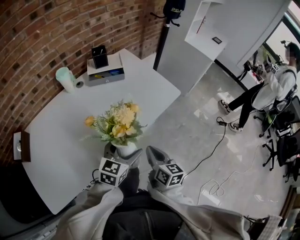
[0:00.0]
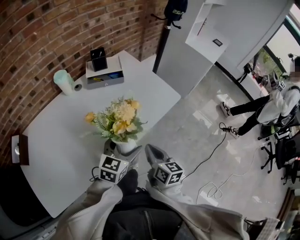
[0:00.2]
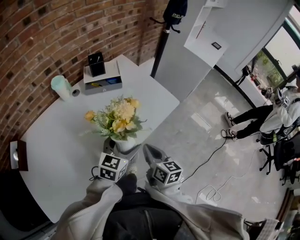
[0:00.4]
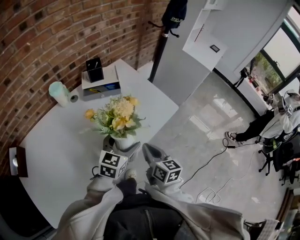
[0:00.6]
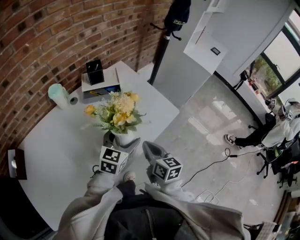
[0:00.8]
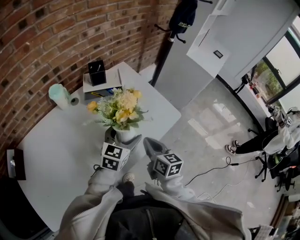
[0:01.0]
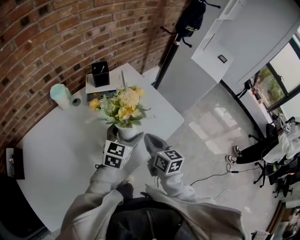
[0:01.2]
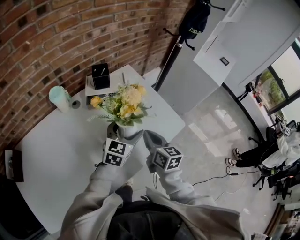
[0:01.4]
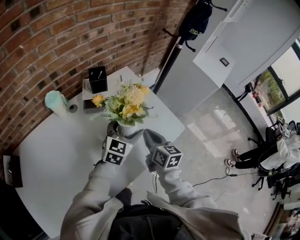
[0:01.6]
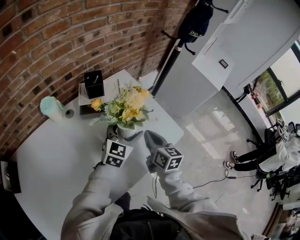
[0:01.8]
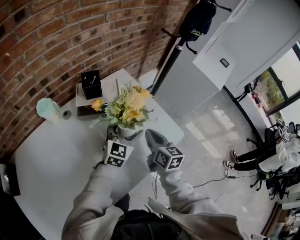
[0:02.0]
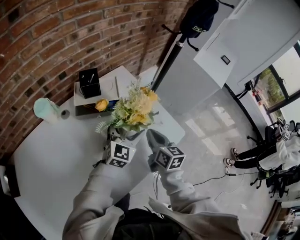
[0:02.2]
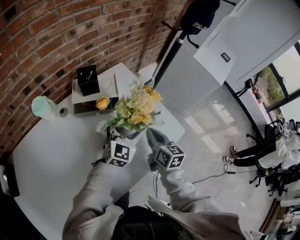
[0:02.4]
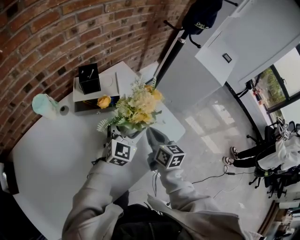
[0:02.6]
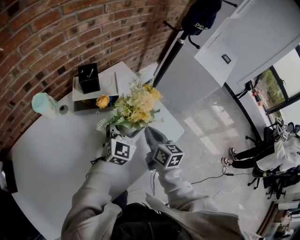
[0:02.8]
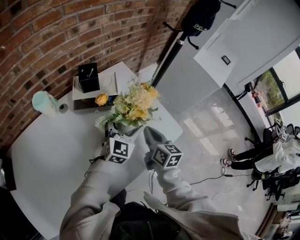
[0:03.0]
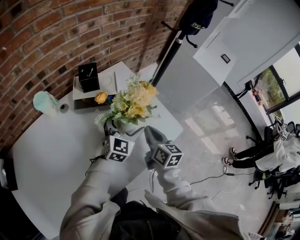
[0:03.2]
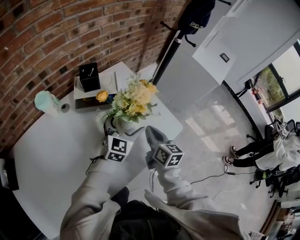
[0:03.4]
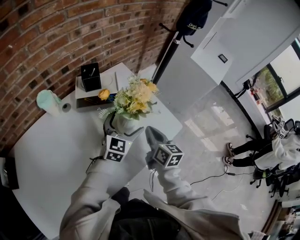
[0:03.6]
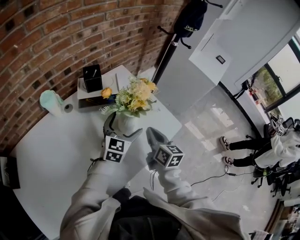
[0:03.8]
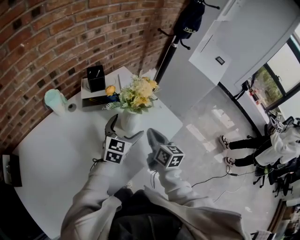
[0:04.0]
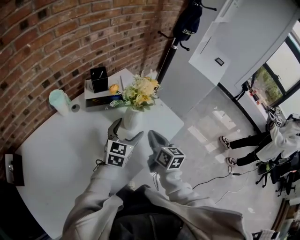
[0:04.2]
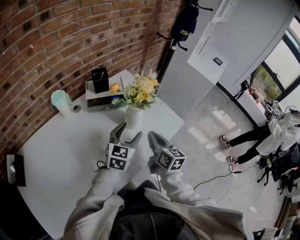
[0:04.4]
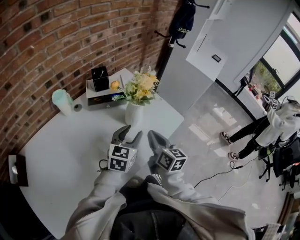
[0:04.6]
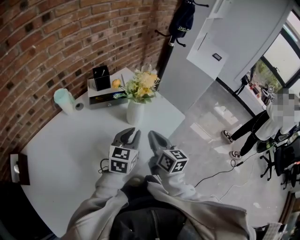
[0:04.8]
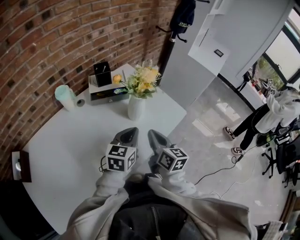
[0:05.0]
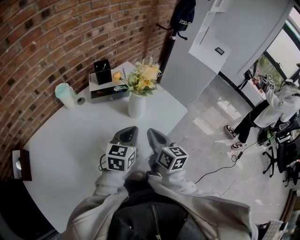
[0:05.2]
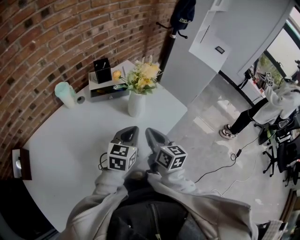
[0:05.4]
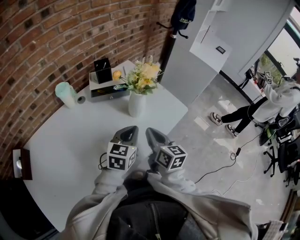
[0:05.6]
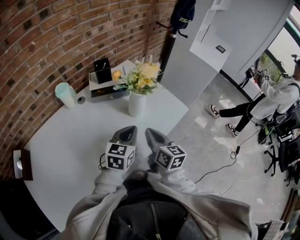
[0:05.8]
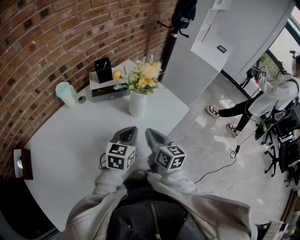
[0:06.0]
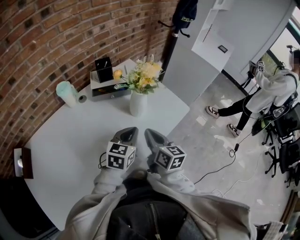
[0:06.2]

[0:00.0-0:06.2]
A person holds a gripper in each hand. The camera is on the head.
0:00.0 to 0:01.6: Both grippers move forward, roughly 30 cm.
0:01.6 to 0:03.2: The right gripper moves roughly 5 cm; the left gripper travels forward by approximately 5 cm.
0:03.2 to 0:04.6: The left gripper travels backward by roughly 15 cm, and closes up, while the right gripper goes roughly 15 cm backward and upward.
0:04.6 to 0:06.2: The left gripper closes.

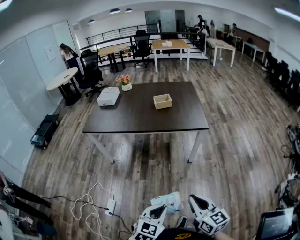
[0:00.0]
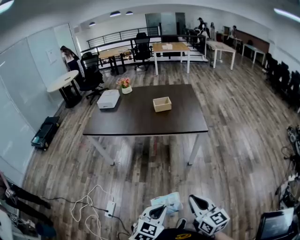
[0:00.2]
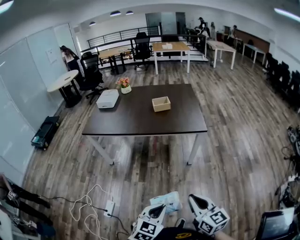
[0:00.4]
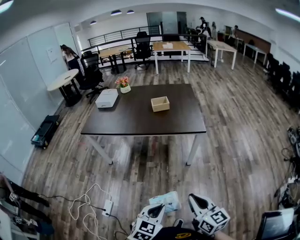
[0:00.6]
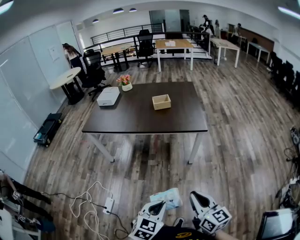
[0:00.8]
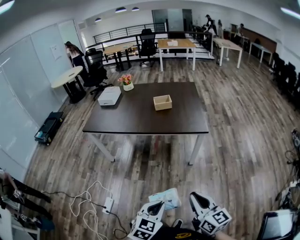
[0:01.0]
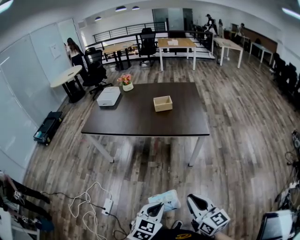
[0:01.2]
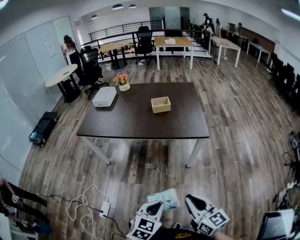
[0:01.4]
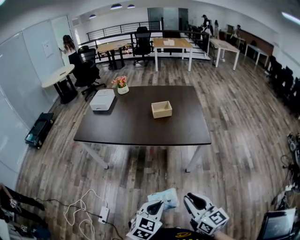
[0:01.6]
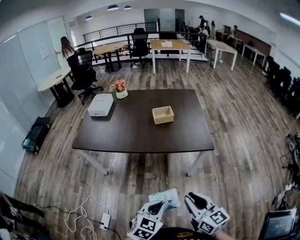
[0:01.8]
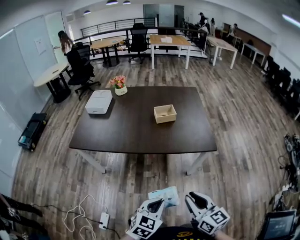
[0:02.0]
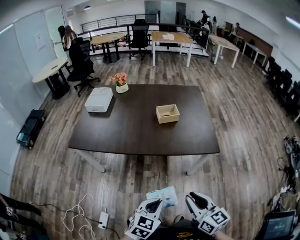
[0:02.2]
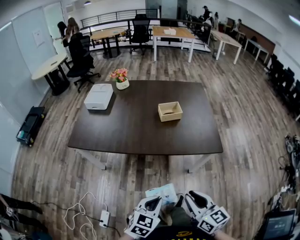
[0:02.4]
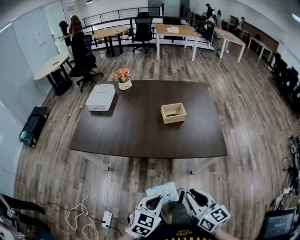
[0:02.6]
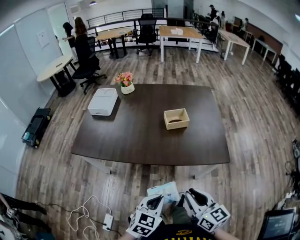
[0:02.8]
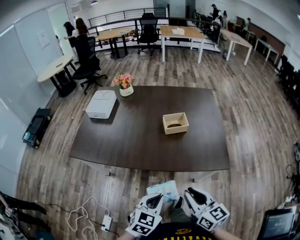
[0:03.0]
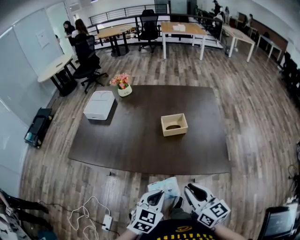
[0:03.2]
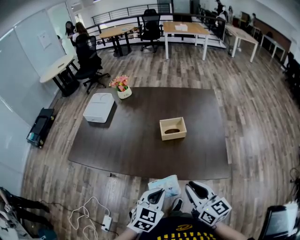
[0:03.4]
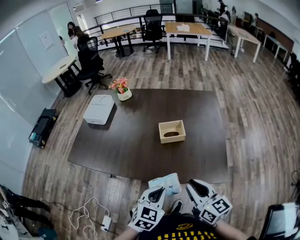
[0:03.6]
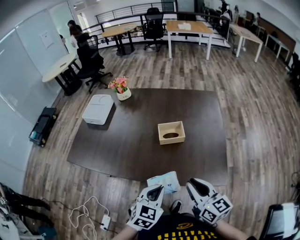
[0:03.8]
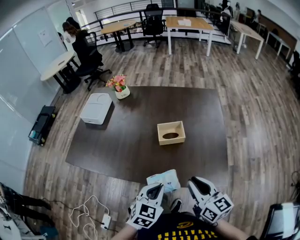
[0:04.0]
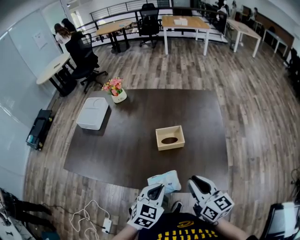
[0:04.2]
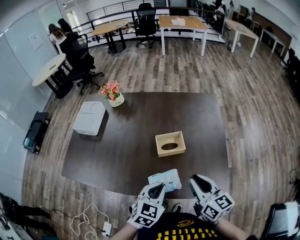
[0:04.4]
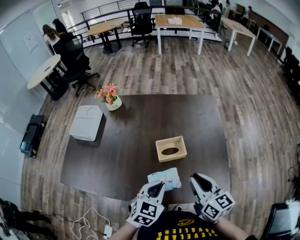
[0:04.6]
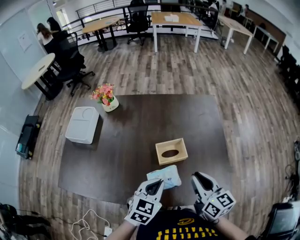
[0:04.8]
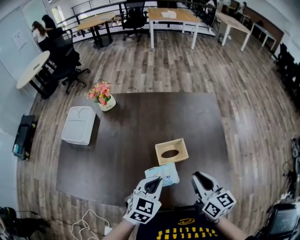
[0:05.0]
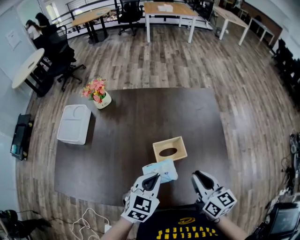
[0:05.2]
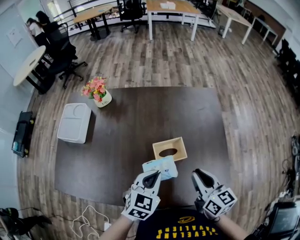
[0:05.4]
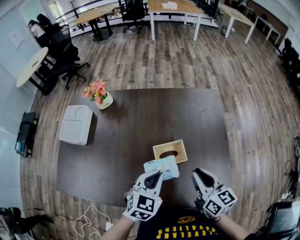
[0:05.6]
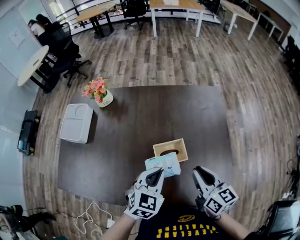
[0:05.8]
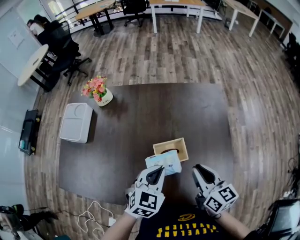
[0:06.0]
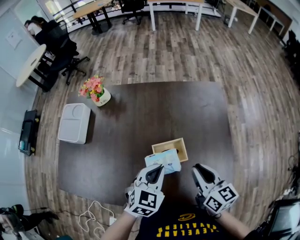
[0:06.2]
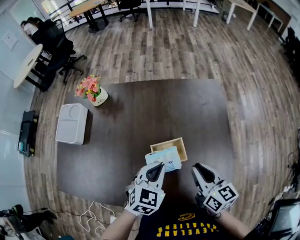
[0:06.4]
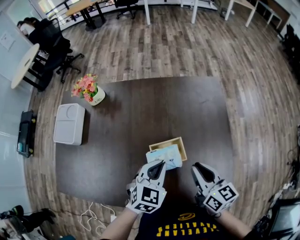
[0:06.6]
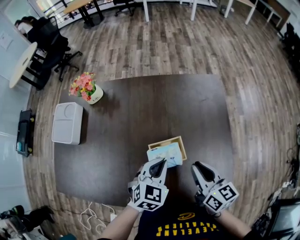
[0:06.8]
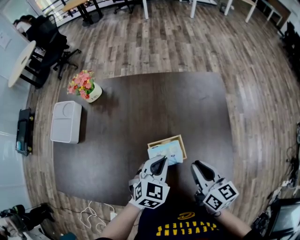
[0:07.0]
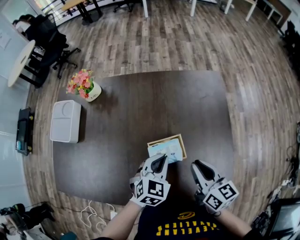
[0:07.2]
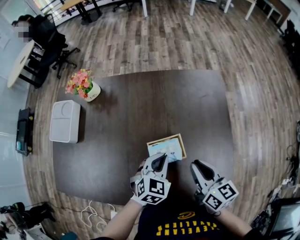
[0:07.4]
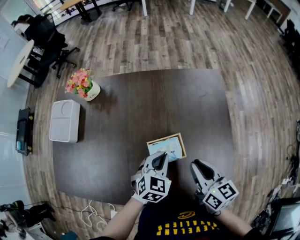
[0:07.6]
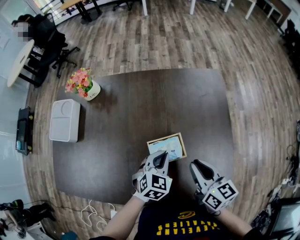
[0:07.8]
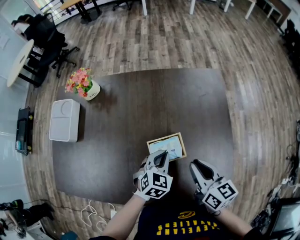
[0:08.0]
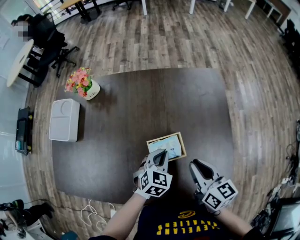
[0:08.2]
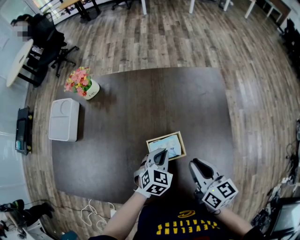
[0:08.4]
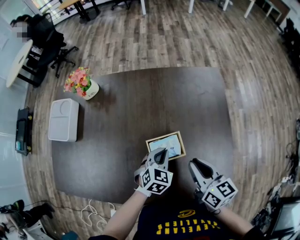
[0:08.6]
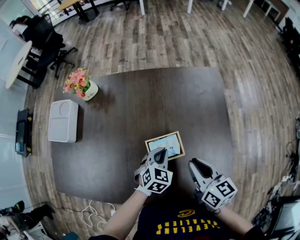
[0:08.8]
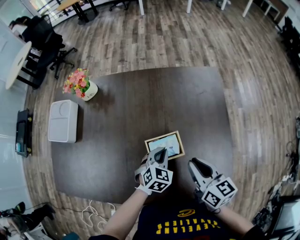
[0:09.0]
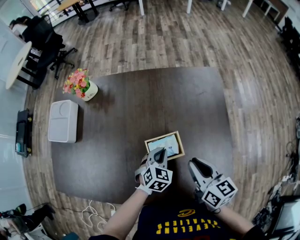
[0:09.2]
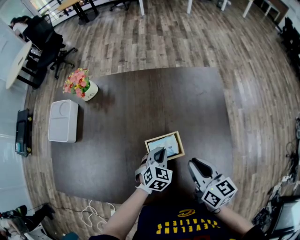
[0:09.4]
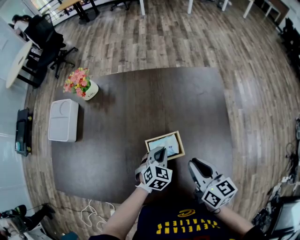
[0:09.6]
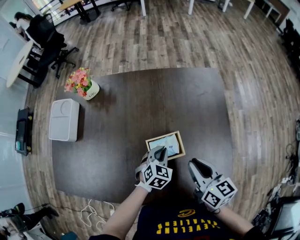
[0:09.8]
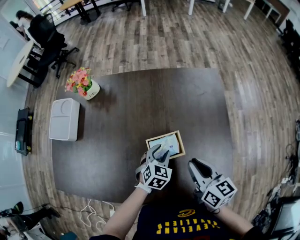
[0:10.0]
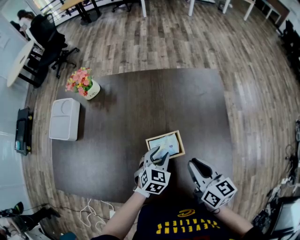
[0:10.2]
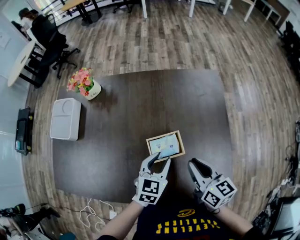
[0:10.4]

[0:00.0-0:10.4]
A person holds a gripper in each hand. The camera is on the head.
0:00.0 to 0:01.4: The two grippers go roughly 10 cm forward.
0:01.4 to 0:03.0: The two grippers go about 35 cm forward.
0:03.0 to 0:04.4: Both grippers move forward, roughly 25 cm.
0:04.4 to 0:06.0: The two grippers go approximately 15 cm forward.
0:06.0 to 0:07.4: The left gripper is displaced downward and forward by approximately 10 cm.
0:07.4 to 0:09.0: The left gripper travels downward by approximately 5 cm.
0:09.0 to 0:10.4: The left gripper travels upward by some 5 cm, changes its angle by roughly 20 degrees, and opens its fingers.

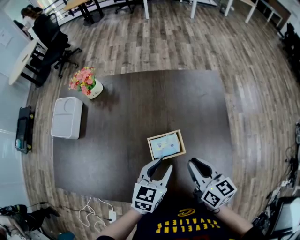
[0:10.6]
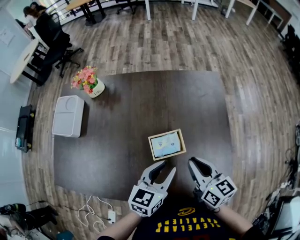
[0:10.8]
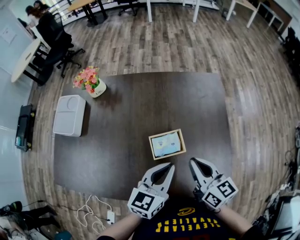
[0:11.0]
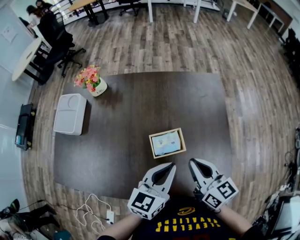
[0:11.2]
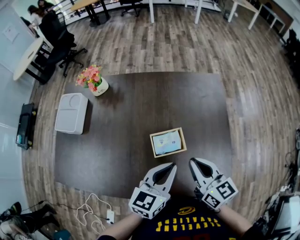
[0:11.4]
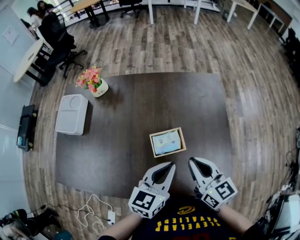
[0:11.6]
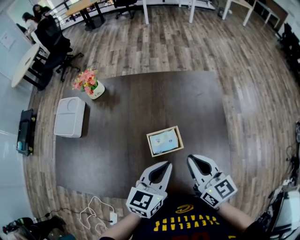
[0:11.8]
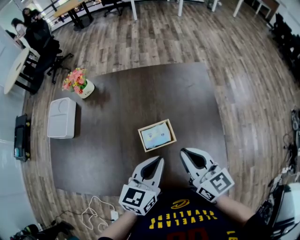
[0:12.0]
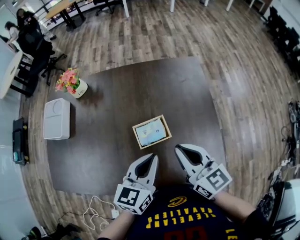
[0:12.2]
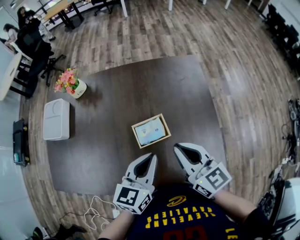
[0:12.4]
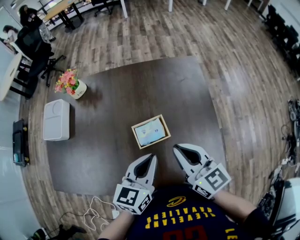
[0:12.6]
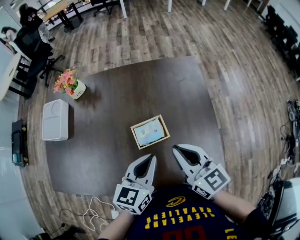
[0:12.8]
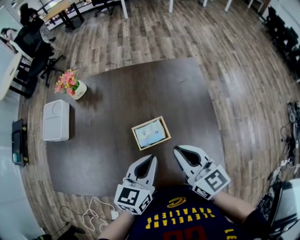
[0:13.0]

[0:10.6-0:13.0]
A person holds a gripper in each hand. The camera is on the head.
0:10.6 to 0:11.8: The two grippers go some 5 cm upward. The left gripper closes.
0:11.8 to 0:13.0: Both grippers stay about where they are.

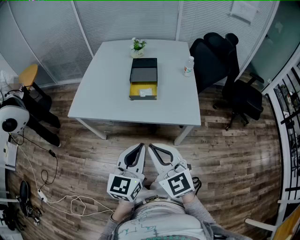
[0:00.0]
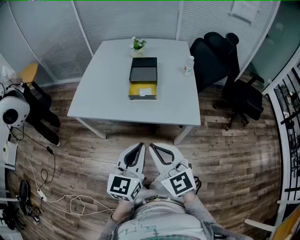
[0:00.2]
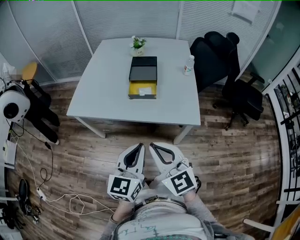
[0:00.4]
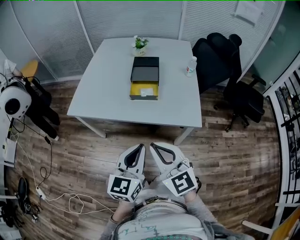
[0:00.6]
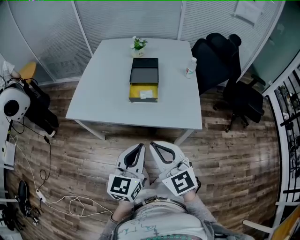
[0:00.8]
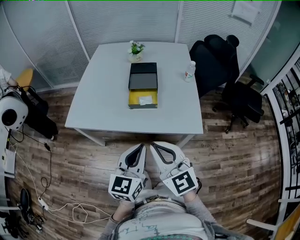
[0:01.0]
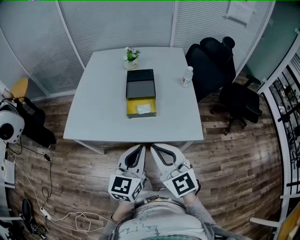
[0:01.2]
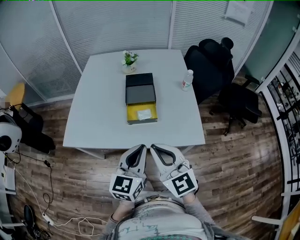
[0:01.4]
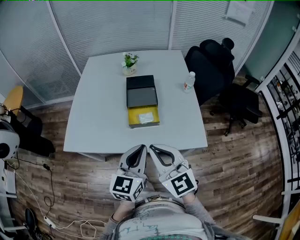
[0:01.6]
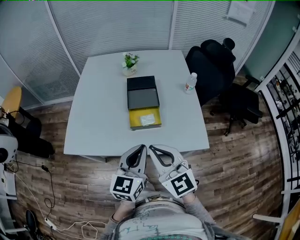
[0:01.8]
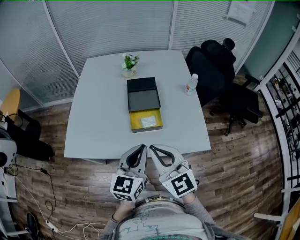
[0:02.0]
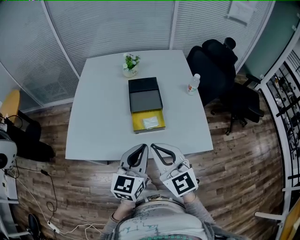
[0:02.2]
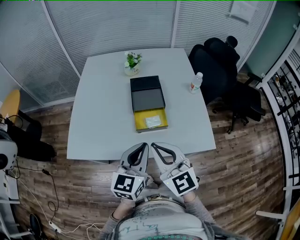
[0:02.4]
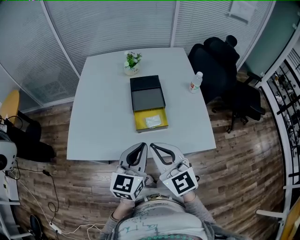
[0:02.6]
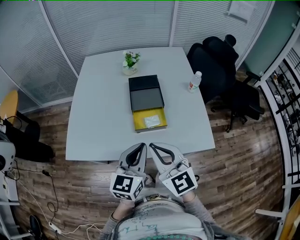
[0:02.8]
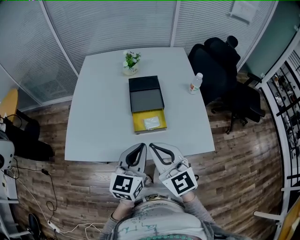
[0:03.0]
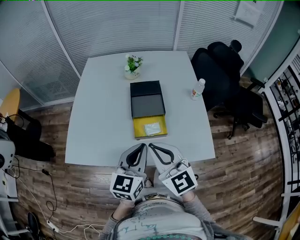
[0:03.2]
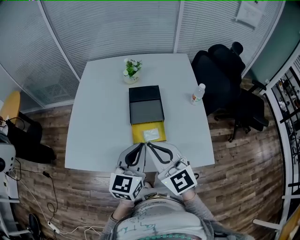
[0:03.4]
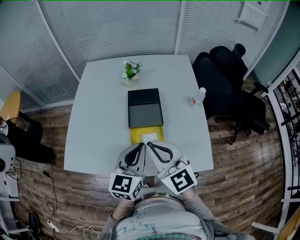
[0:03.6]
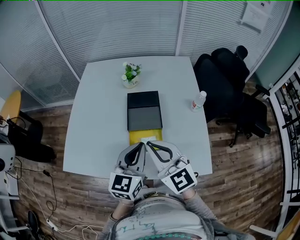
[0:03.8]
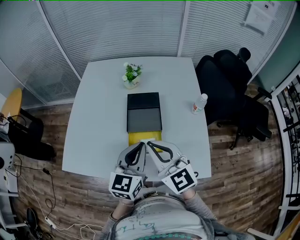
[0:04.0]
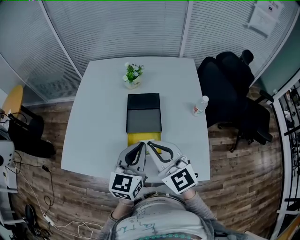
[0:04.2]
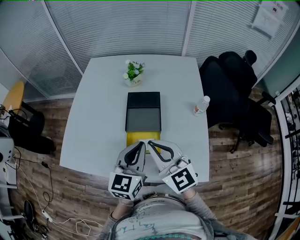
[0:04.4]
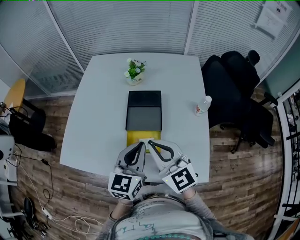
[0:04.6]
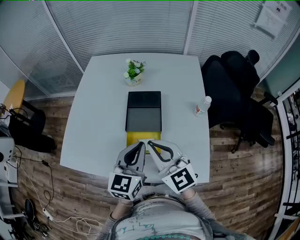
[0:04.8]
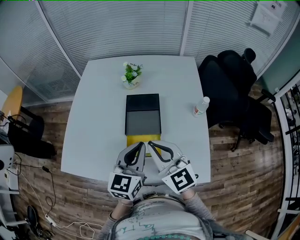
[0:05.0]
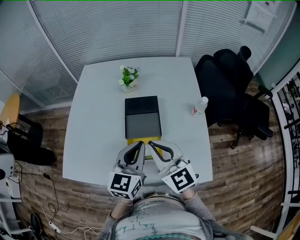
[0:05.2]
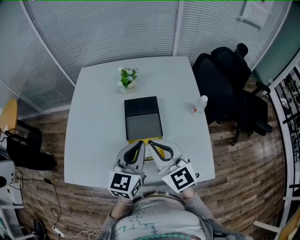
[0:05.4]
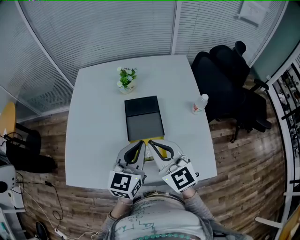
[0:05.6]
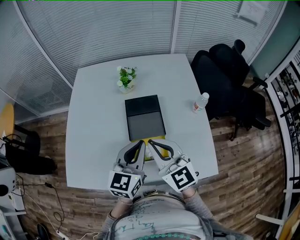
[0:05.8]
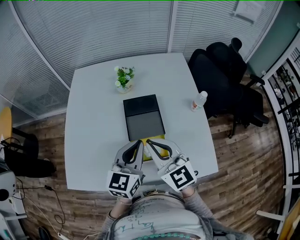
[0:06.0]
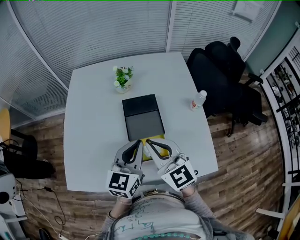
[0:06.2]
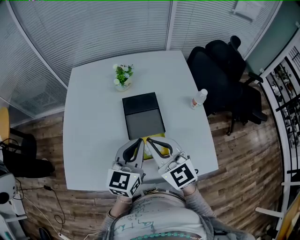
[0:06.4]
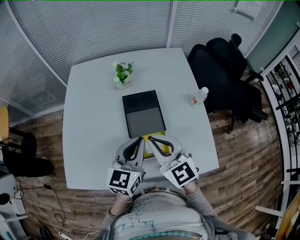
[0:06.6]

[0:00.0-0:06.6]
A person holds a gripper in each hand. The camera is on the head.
0:00.0 to 0:01.6: The grippers both shift forward by about 20 cm.
0:01.6 to 0:03.2: The grippers both shift forward by some 10 cm.
0:03.2 to 0:05.0: The two grippers go about 15 cm forward and to the right.
0:05.0 to 0:06.6: Both grippers move to the left, approximately 5 cm.
